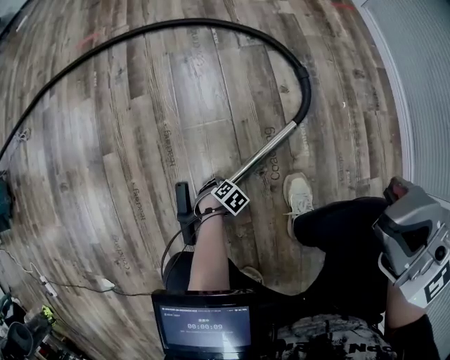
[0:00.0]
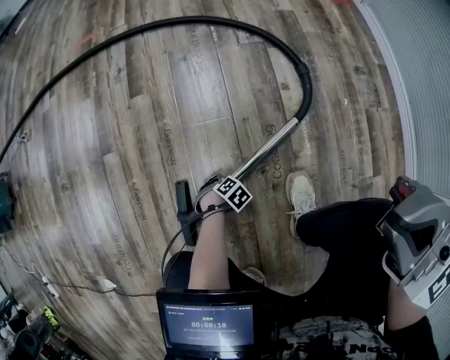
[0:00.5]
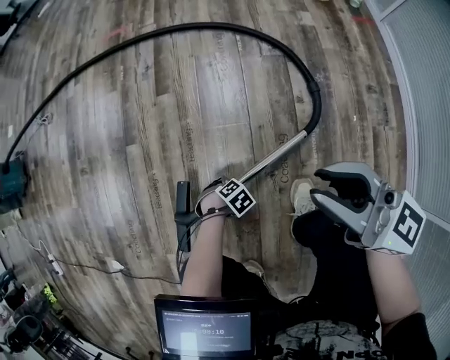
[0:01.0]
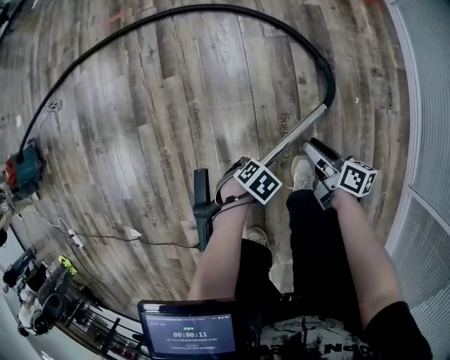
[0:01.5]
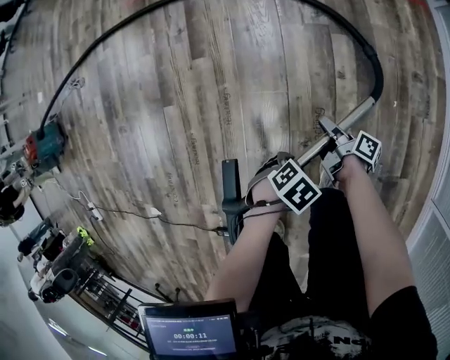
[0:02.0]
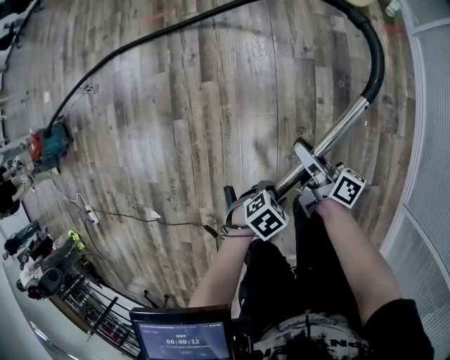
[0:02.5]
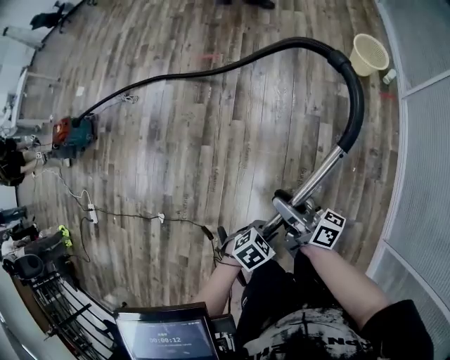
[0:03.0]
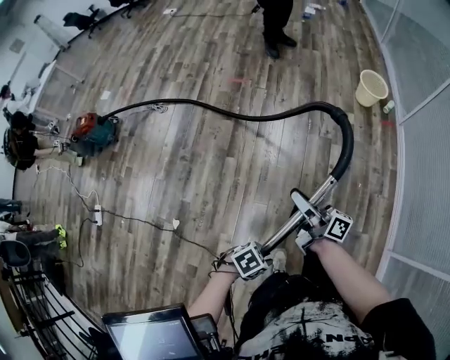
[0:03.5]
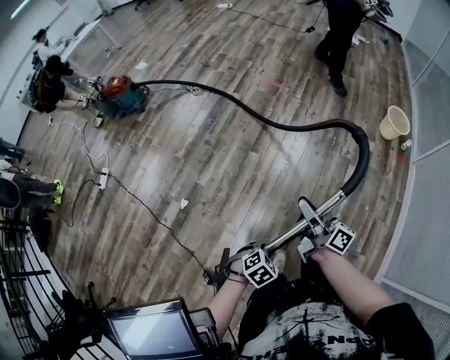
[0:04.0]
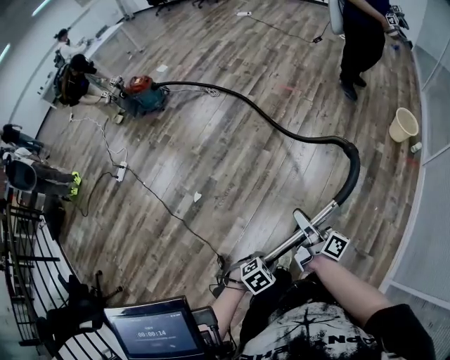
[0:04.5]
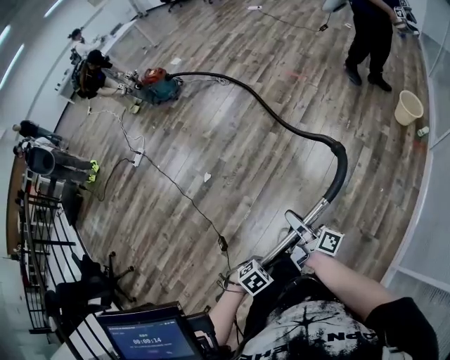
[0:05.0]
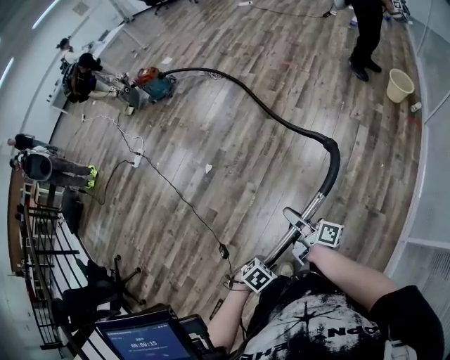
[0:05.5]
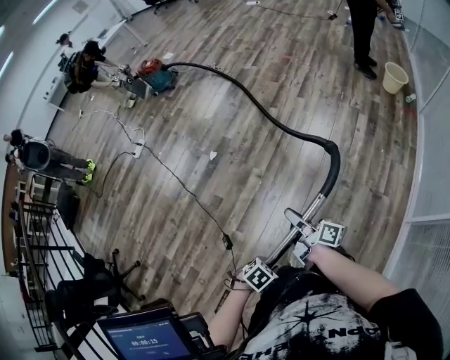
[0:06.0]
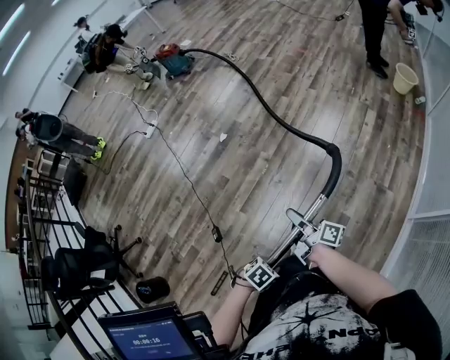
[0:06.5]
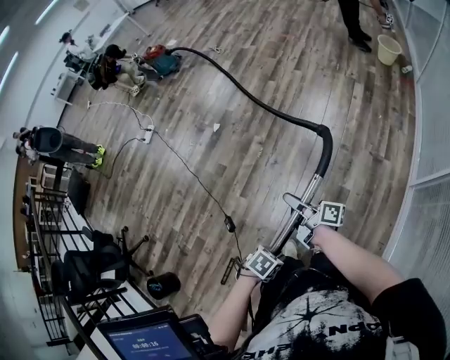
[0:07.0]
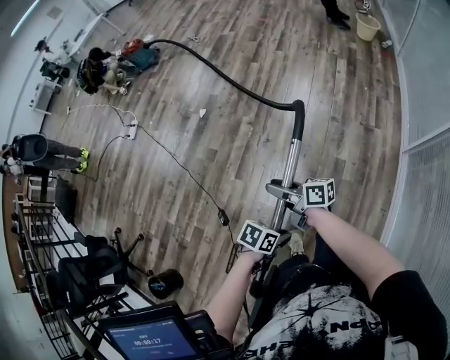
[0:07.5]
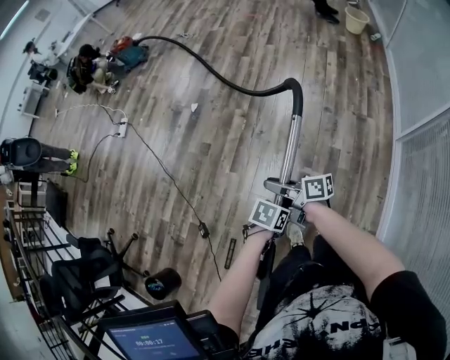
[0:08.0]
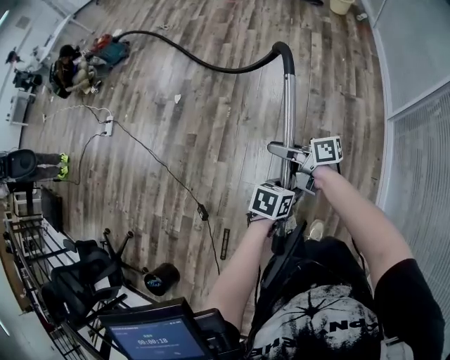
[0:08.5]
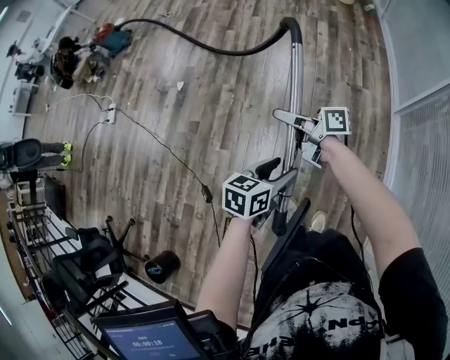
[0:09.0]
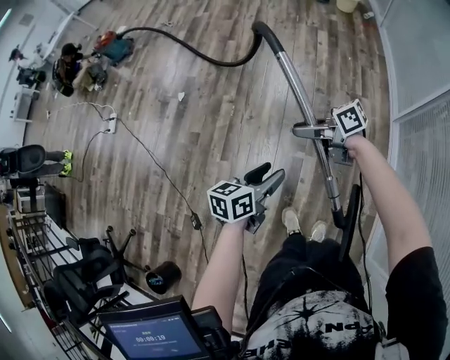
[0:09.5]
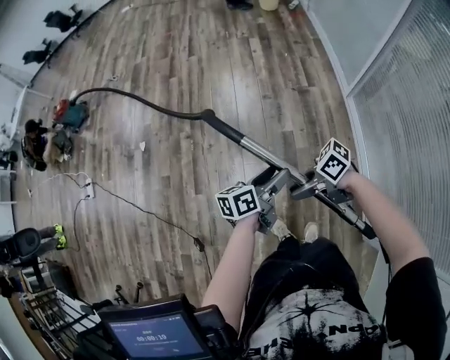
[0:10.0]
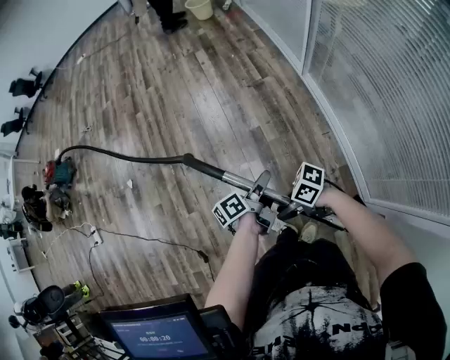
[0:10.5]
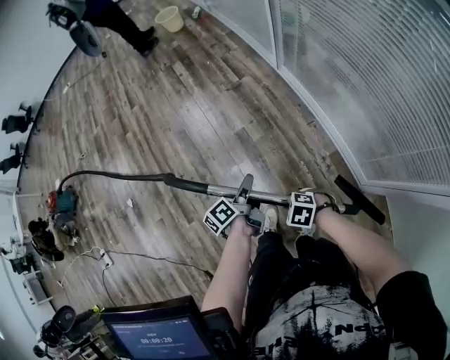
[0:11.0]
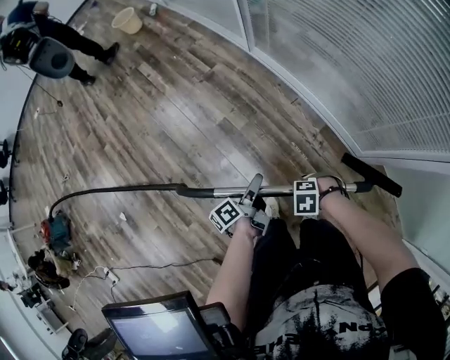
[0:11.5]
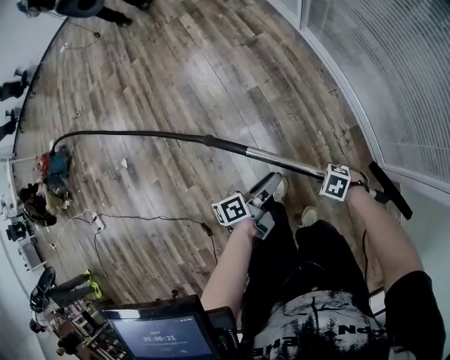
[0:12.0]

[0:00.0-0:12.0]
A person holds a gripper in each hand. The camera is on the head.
0:00.0 to 0:02.0: The left gripper shifts some 30 cm upward, while the right gripper heads downward, covering some 40 cm, twists some 110 degrees clockwise, seen from behind, and opens.
0:02.0 to 0:04.0: The grippers both shift upward by roughly 60 cm. The right gripper points its fingers roughly 30 degrees further upward, and closes its fingers. The left gripper swivels roughly 30 degrees.
0:04.0 to 0:06.0: The two grippers travel together, roughly 50 cm. The left gripper rotates roughly 20 degrees.
0:06.0 to 0:08.0: The left gripper shifts by about 20 cm. Meanwhile the right gripper ends up approximately 35 cm from where it was, and swivels some 20 degrees.
0:08.0 to 0:10.0: The left gripper shifts by approximately 20 cm, tips its fingers upward by approximately 40 degrees, and opens its fingers, while the right gripper travels upward and back again, about 5 cm each way, and swivels about 30 degrees.
0:10.0 to 0:12.0: The right gripper moves about 35 cm, and tips its fingers downward by about 50 degrees. The left gripper moves approximately 25 cm, swivels roughly 20 degrees, and closes and opens again.

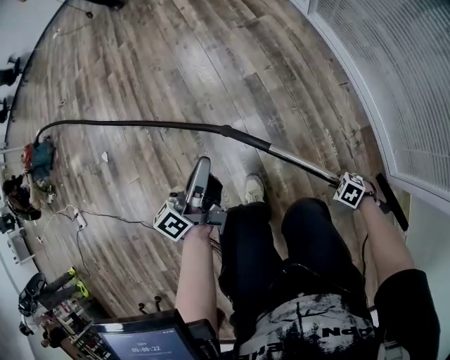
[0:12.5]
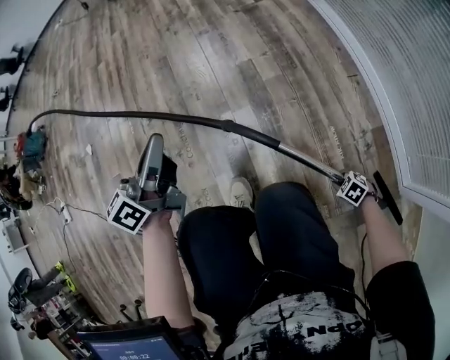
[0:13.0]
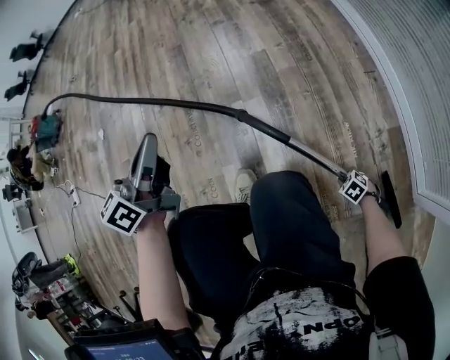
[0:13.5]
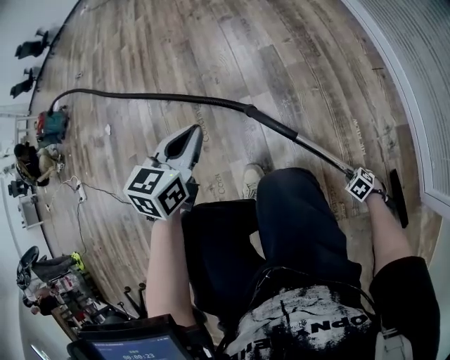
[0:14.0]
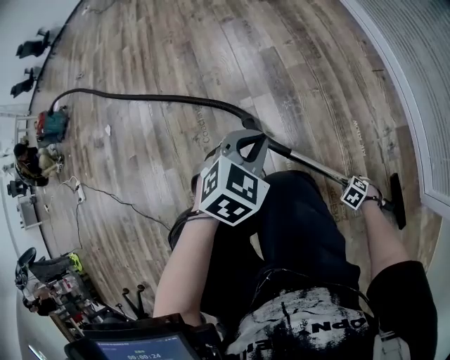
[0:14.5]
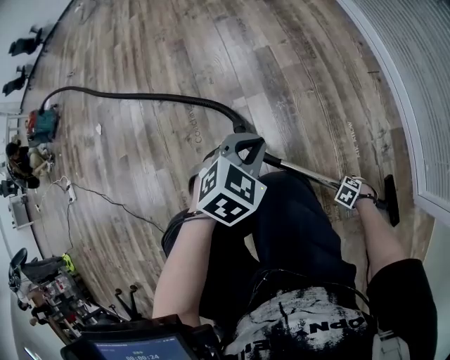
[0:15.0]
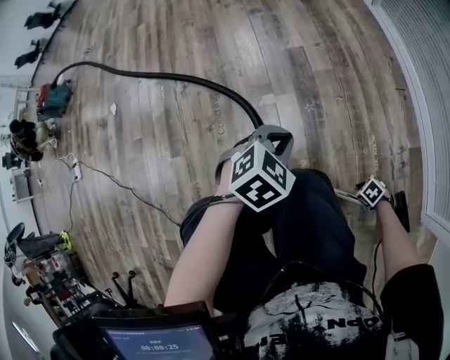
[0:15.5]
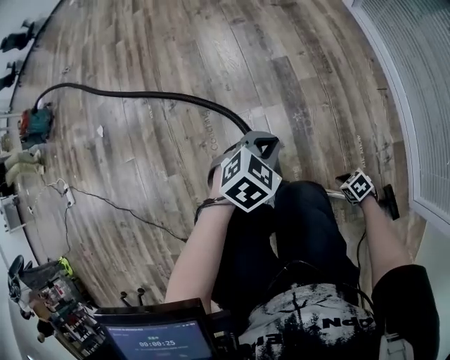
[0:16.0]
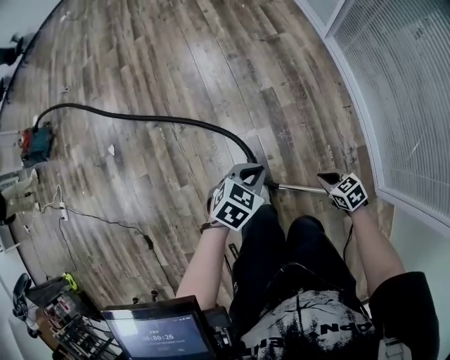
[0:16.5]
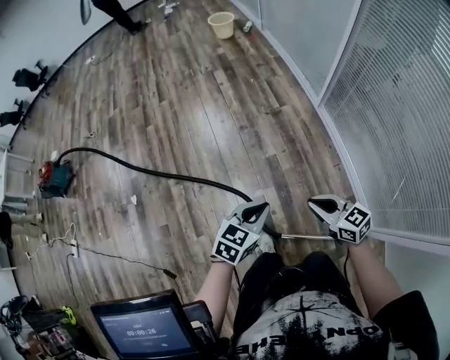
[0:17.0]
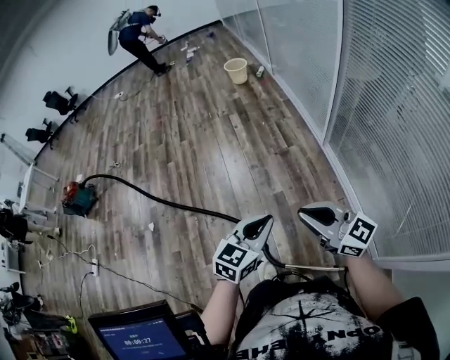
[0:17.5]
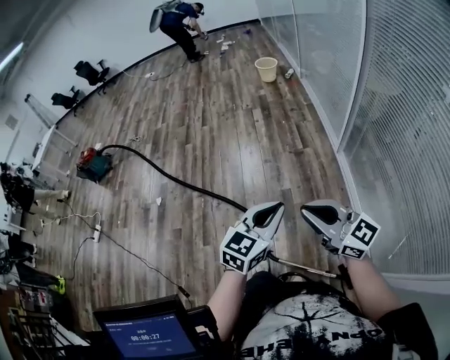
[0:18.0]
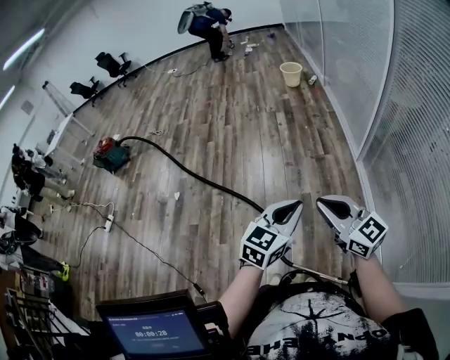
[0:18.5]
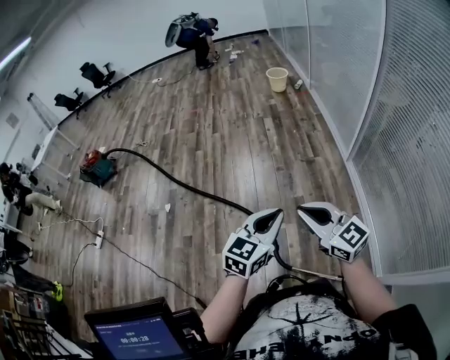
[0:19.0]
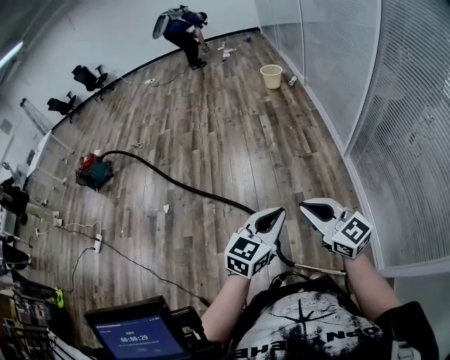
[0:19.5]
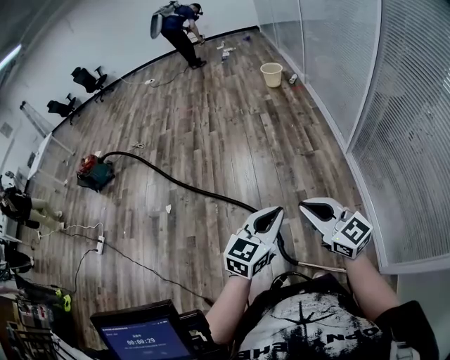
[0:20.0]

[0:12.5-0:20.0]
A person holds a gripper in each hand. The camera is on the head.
0:12.5 to 0:14.5: Both grippers move downward, some 25 cm. The left gripper tilts its fingers roughly 60 degrees downward.
0:14.5 to 0:16.5: The right gripper is displaced upward by about 50 cm, turns by approximately 30 degrees, and opens, then closes again. The left gripper shifts approximately 20 cm upward, and swivels about 20 degrees.
0:16.5 to 0:18.0: Both grippers move upward, approximately 50 cm. The left gripper points its fingers roughly 40 degrees further upward; the right gripper points its fingers roughly 60 degrees further upward.
0:18.0 to 0:20.0: Both grippers travel together to the left, about 15 cm.

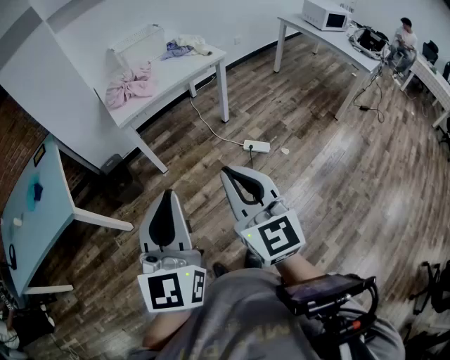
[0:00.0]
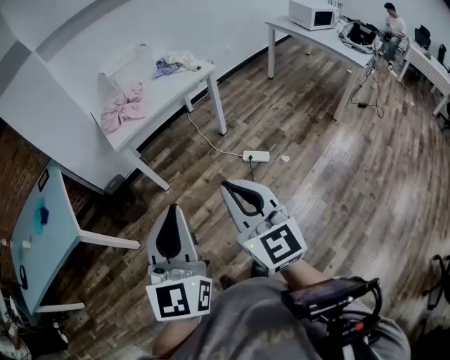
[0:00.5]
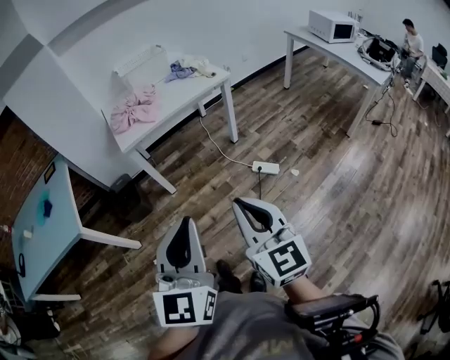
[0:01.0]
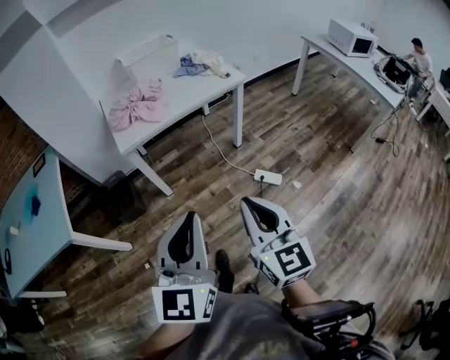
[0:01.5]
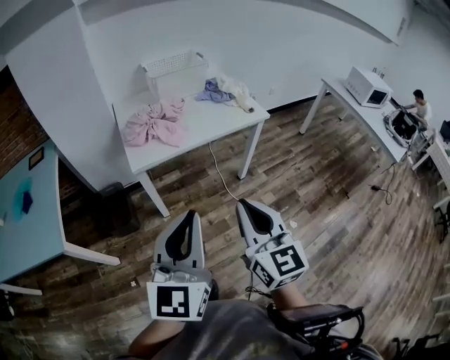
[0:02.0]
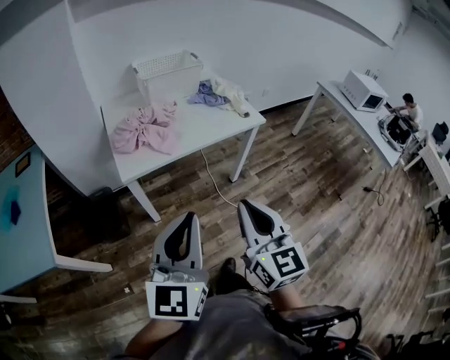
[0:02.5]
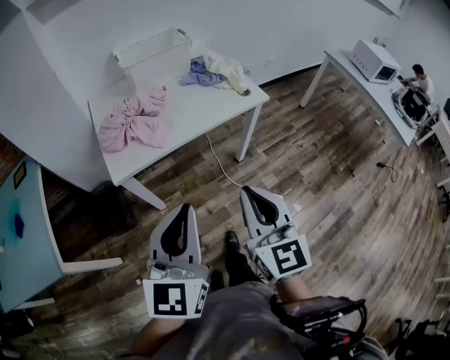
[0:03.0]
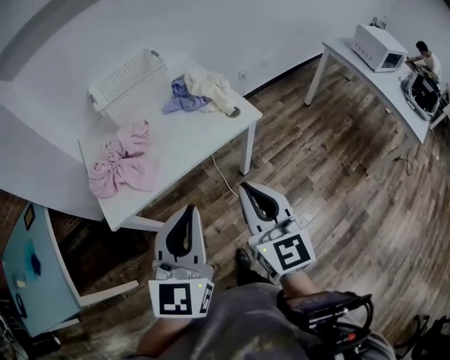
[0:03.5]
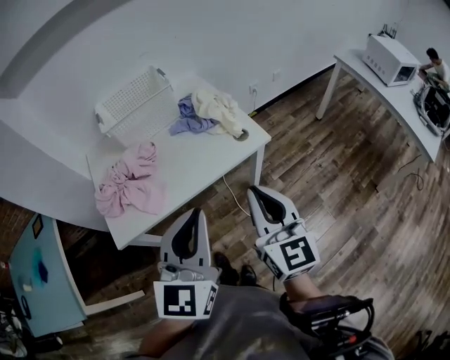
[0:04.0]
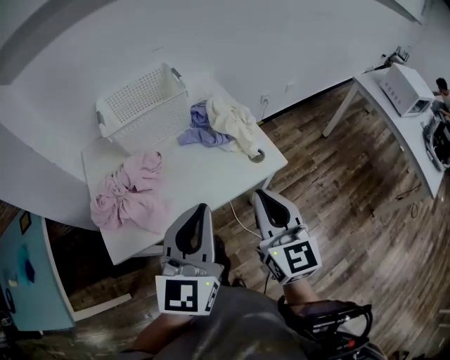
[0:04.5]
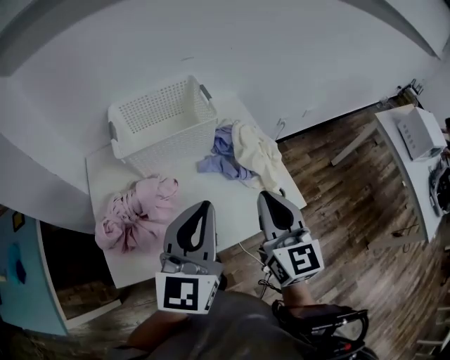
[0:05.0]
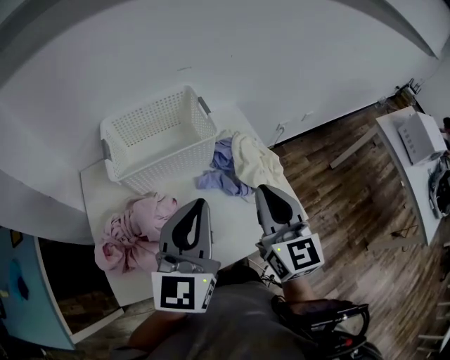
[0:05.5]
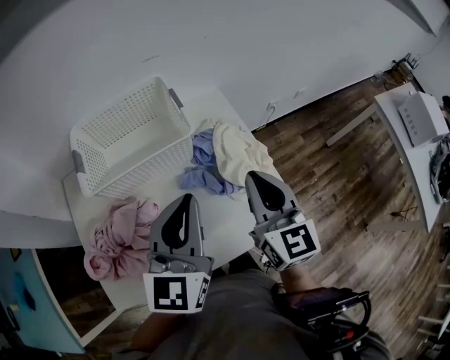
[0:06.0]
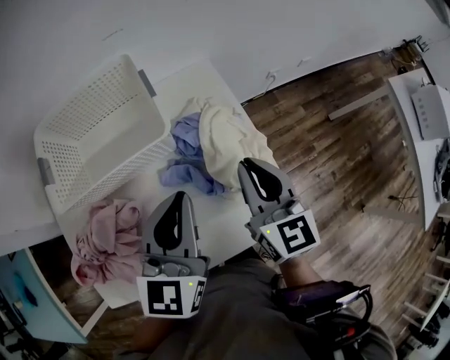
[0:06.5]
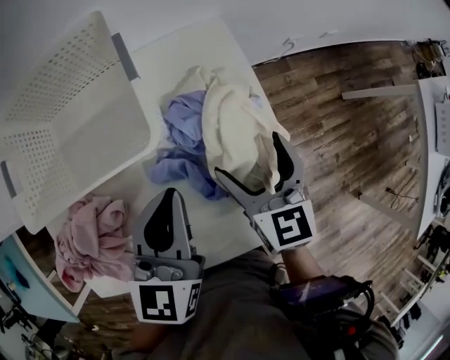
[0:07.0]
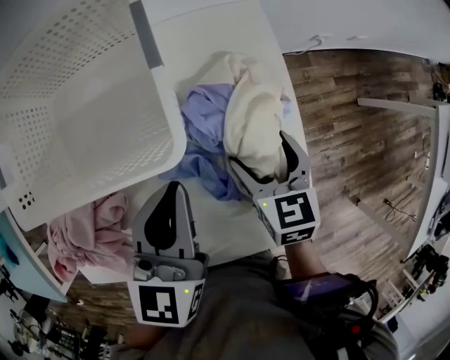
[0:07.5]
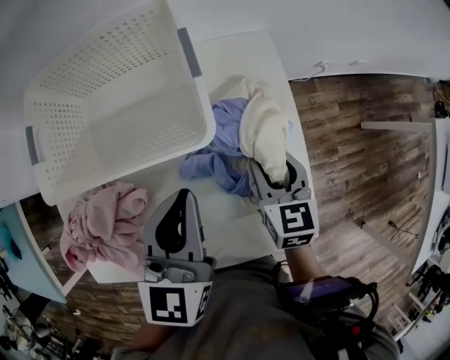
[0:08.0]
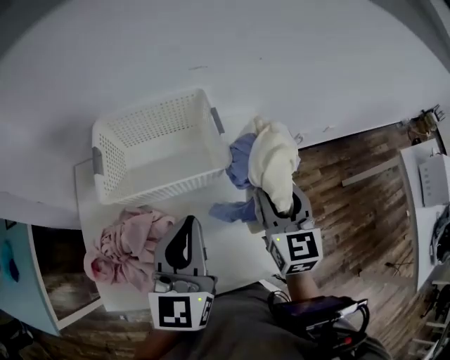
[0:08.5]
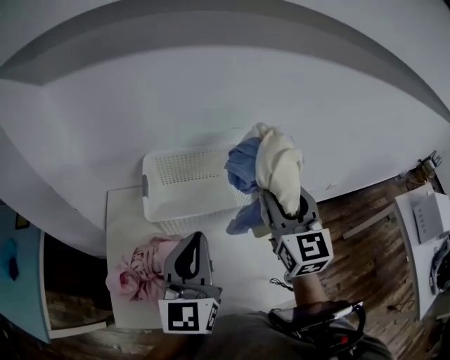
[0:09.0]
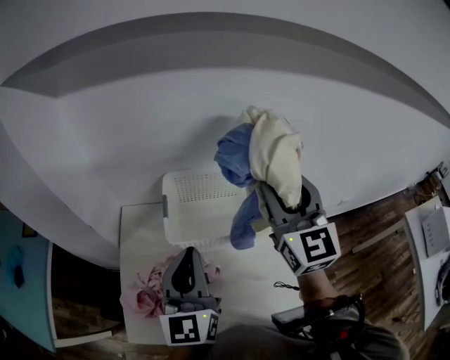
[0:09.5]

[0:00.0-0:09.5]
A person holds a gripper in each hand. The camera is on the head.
0:00.0 to 0:02.0: Both grippers travel together forward, roughly 25 cm.
0:02.0 to 0:04.0: The two grippers go roughly 35 cm forward and to the right.
0:04.0 to 0:05.5: Both grippers travel together forward, approximately 30 cm.
0:05.5 to 0:07.5: Both grippers travel together downward and forward, some 30 cm. The right gripper tilts its fingers roughly 40 degrees downward, and opens up. The left gripper turns by roughly 30 degrees.
0:07.5 to 0:09.5: The right gripper shifts about 50 cm upward and to the left, tips its fingers upward by roughly 50 degrees, and closes up, while the left gripper shifts some 30 cm to the left and upward, and points its fingers about 30 degrees further upward.
